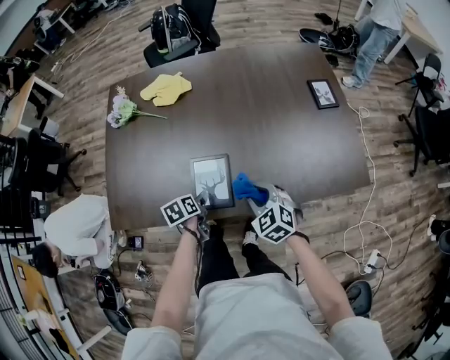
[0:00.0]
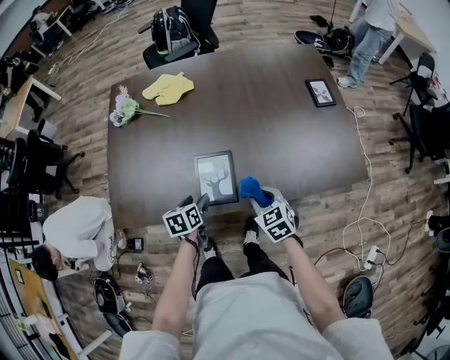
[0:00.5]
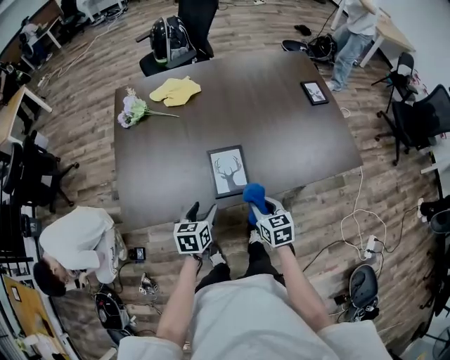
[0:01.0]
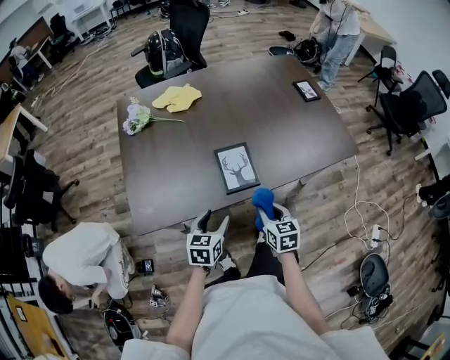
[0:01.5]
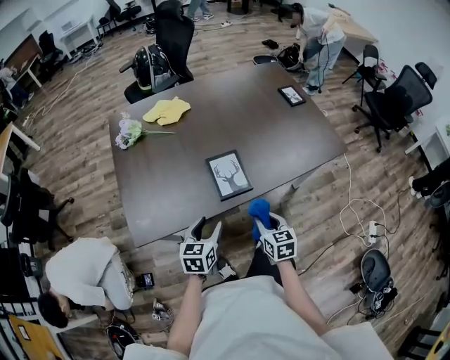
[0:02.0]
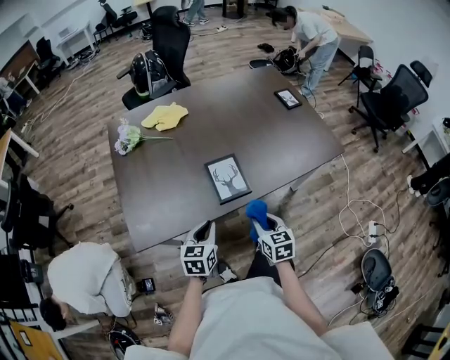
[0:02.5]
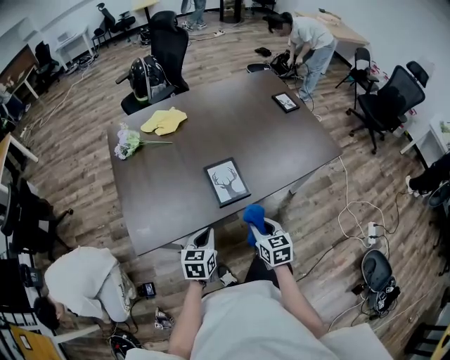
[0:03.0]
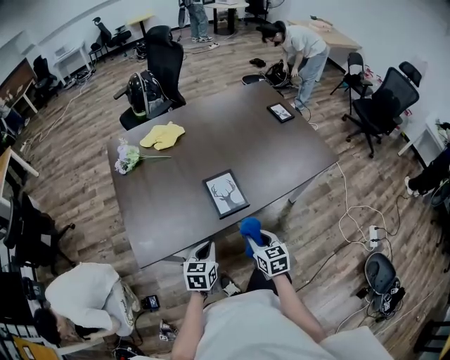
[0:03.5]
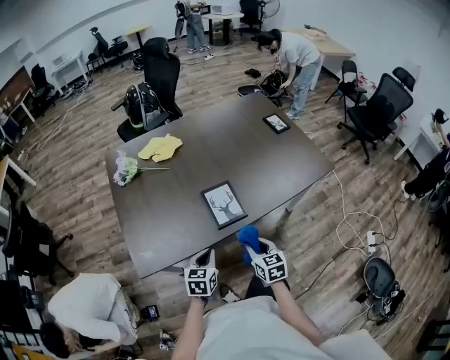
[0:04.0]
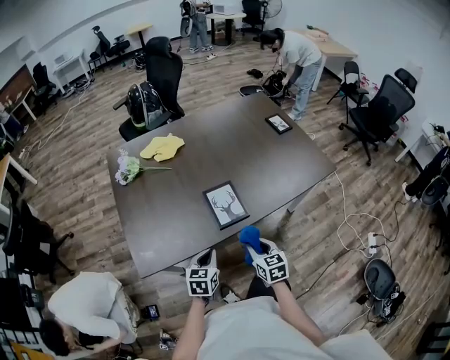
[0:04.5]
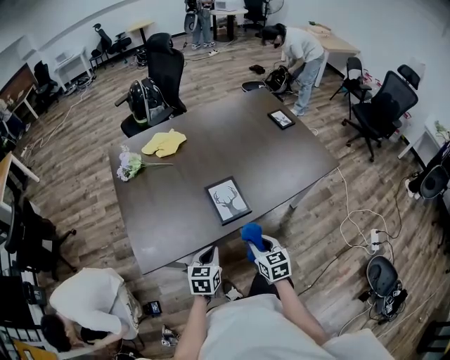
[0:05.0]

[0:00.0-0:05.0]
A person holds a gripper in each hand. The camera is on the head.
0:00.0 to 0:02.5: The left gripper moves backward, upward and to the left, some 20 cm, rotates around the line of its fingers by roughly 40 degrees, clockwise from behind, and closes up. The right gripper moves backward and to the left, some 20 cm, and rolls clockwise, seen from behind, by approximately 40 degrees.
0:02.5 to 0:05.0: The grippers stay close to where they were, moving slightly.

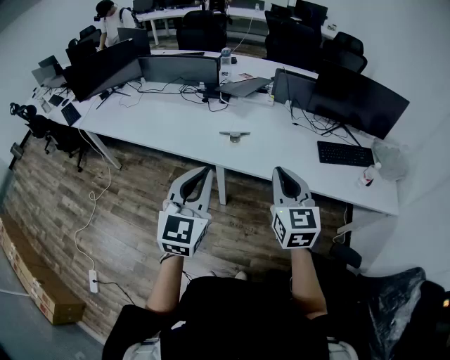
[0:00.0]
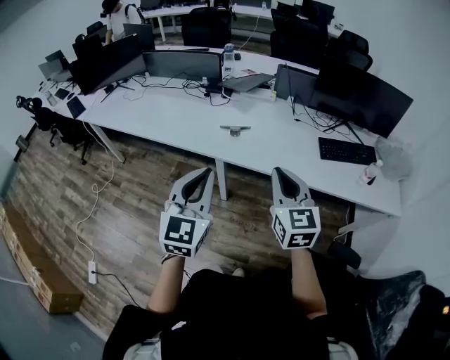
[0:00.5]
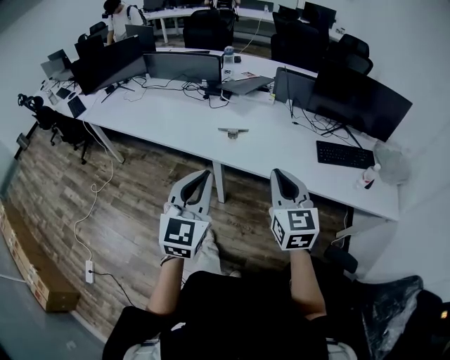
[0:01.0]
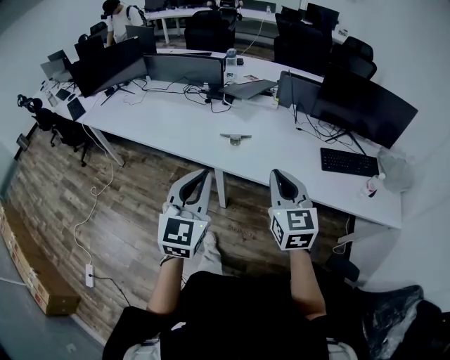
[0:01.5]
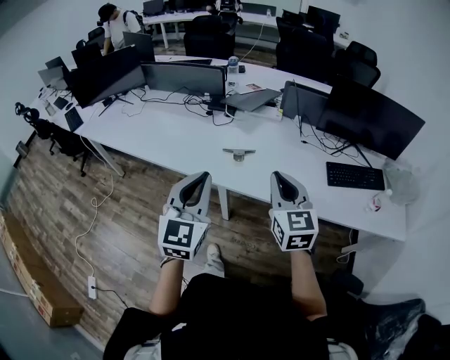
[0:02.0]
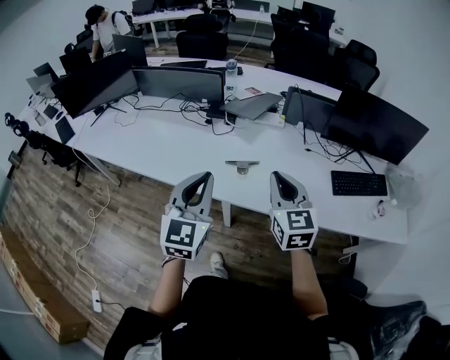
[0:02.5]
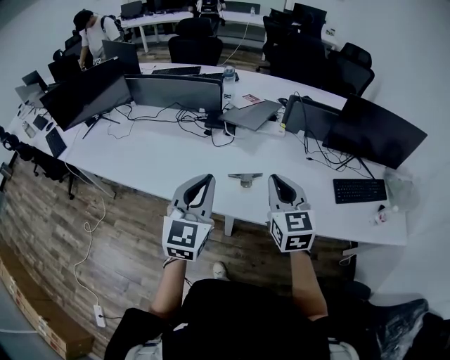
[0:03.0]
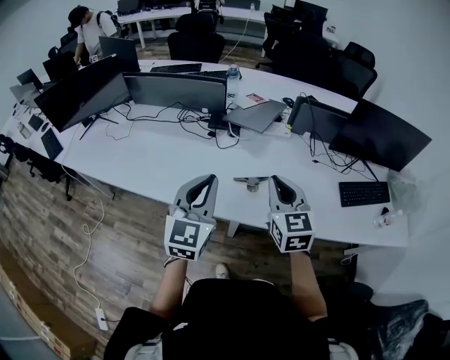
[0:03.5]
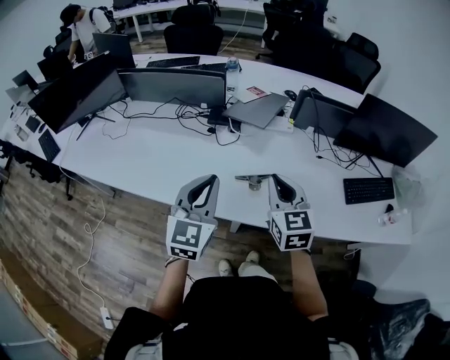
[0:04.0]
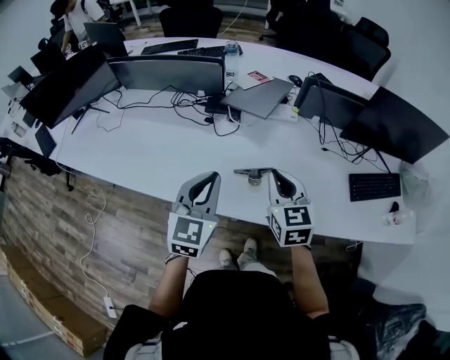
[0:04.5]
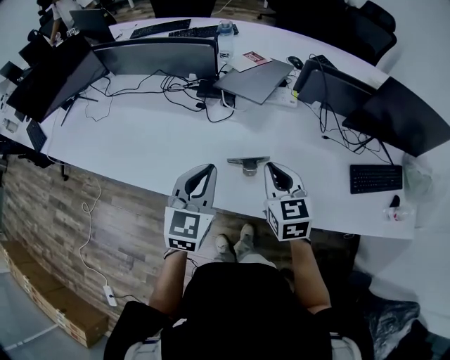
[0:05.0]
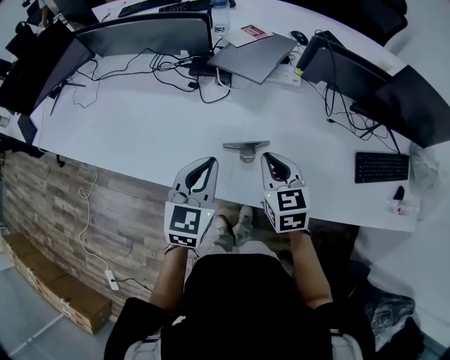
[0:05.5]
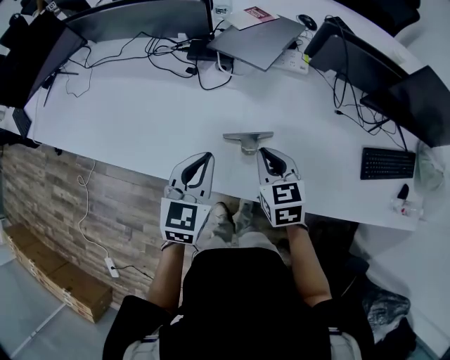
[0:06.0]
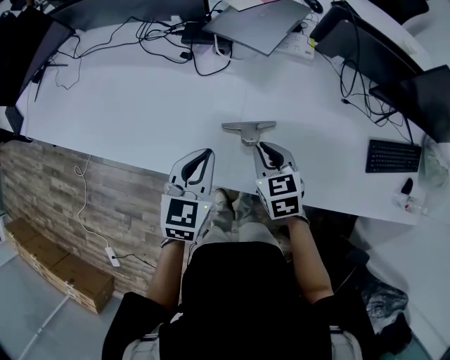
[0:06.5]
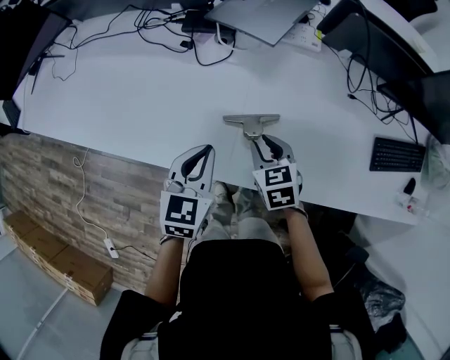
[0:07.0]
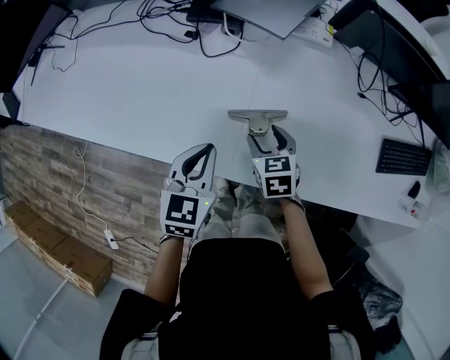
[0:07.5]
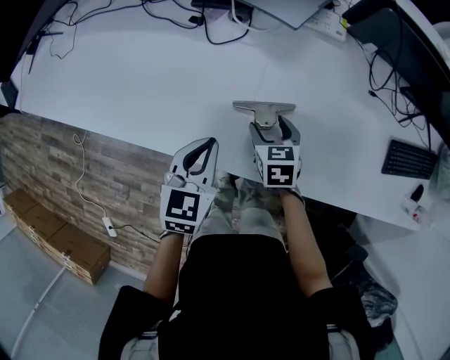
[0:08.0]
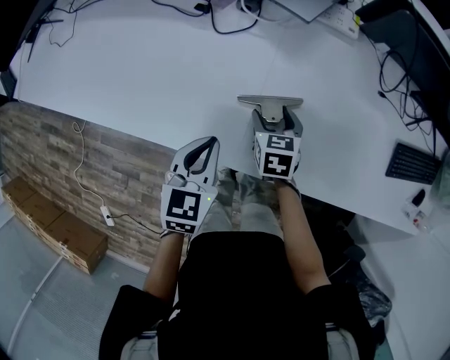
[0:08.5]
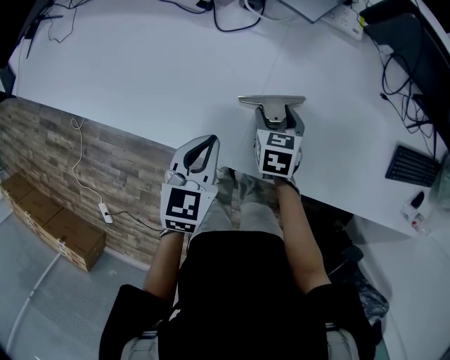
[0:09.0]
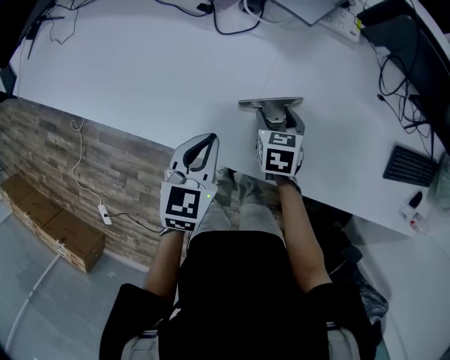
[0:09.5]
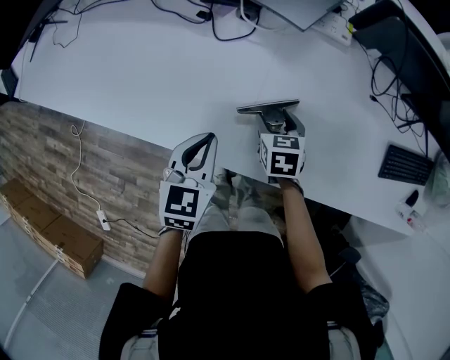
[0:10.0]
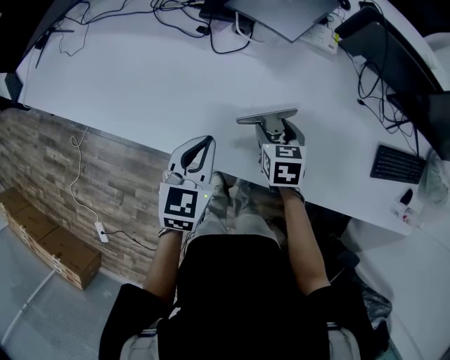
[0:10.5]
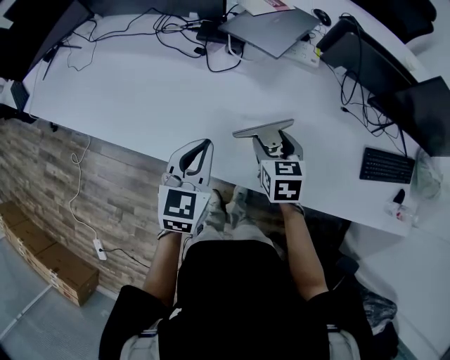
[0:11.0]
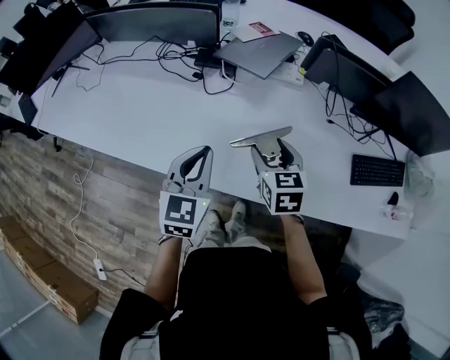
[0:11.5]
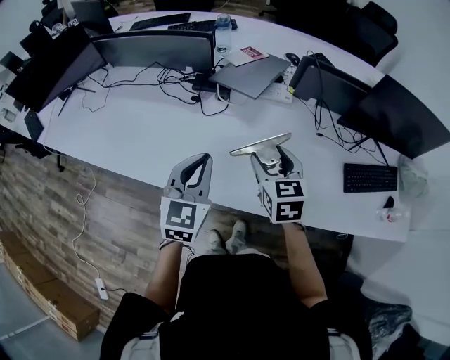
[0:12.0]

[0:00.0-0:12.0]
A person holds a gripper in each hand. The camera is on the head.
0:00.0 to 0:02.0: Both grippers travel together forward, some 10 cm.
0:02.0 to 0:04.0: Both grippers move forward and to the left, roughly 25 cm.
0:04.0 to 0:06.0: Both grippers move downward and forward, approximately 20 cm. The left gripper swivels approximately 20 degrees; the right gripper changes its angle by some 20 degrees.
0:06.0 to 0:08.0: The right gripper heads downward, covering roughly 15 cm, and opens its fingers. Meanwhile the left gripper travels downward by about 10 cm.
0:08.0 to 0:10.0: The grippers move only a little.
0:10.0 to 0:12.0: The grippers both shift upward by about 25 cm. The right gripper turns by some 20 degrees. The left gripper swivels about 20 degrees.

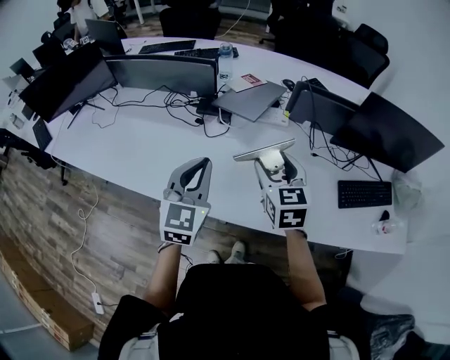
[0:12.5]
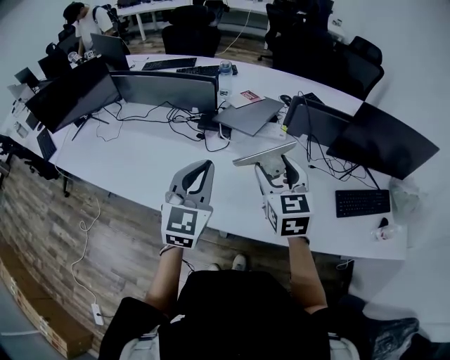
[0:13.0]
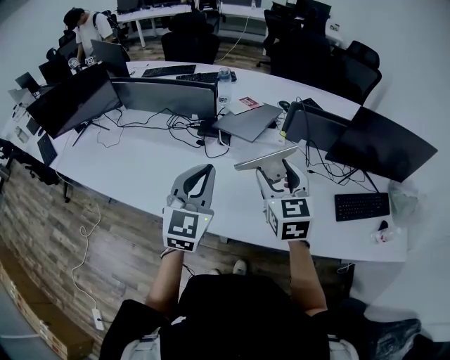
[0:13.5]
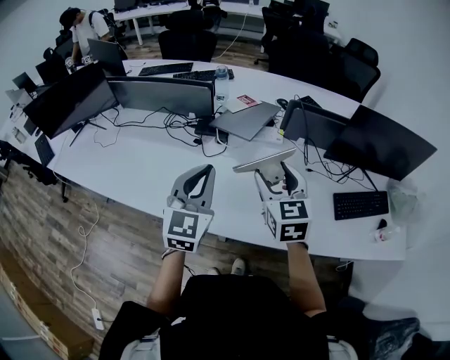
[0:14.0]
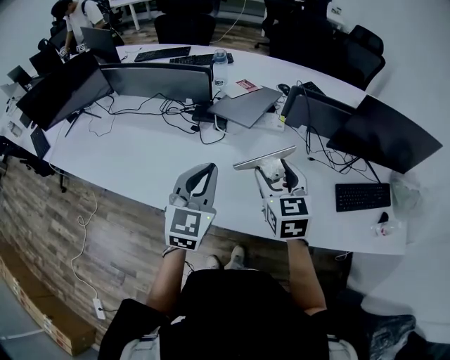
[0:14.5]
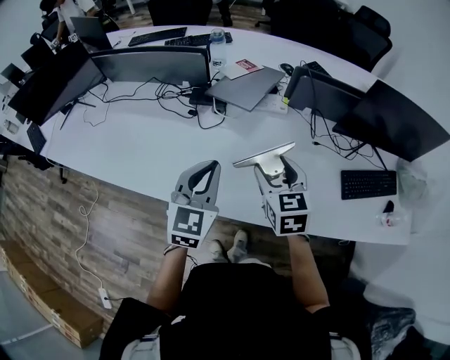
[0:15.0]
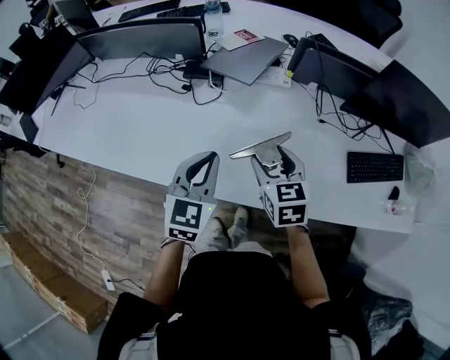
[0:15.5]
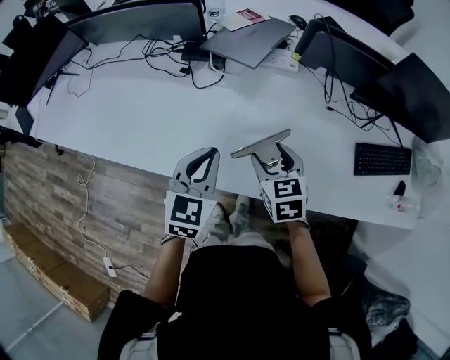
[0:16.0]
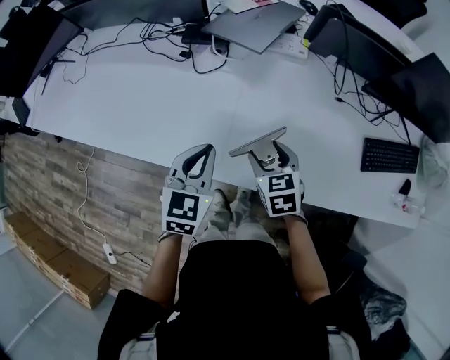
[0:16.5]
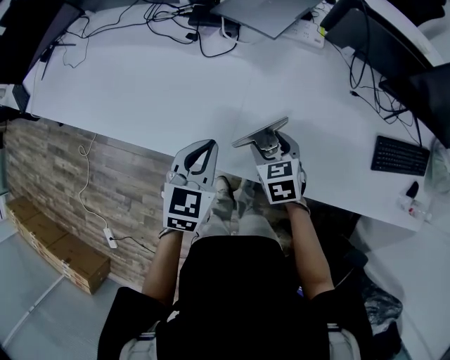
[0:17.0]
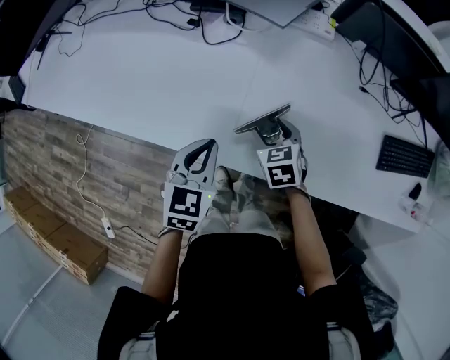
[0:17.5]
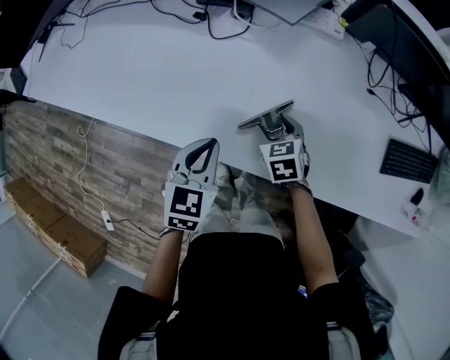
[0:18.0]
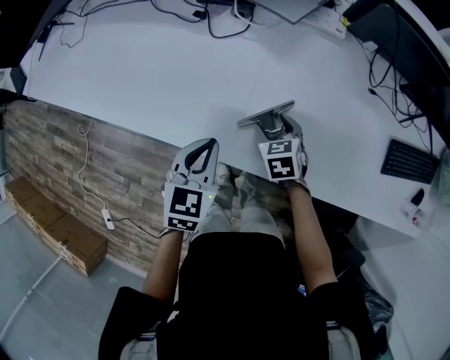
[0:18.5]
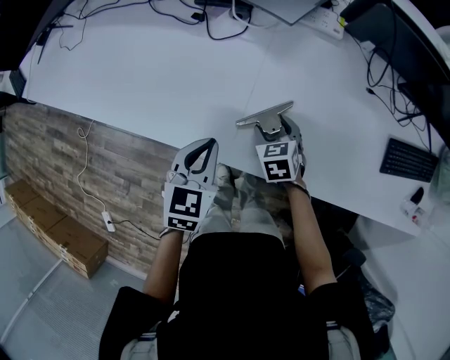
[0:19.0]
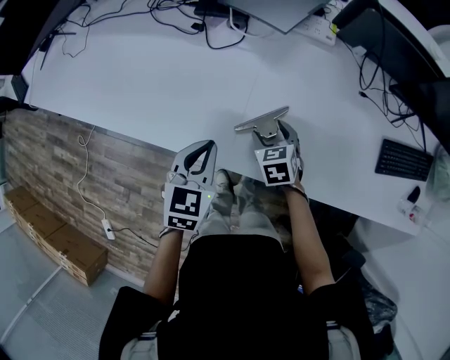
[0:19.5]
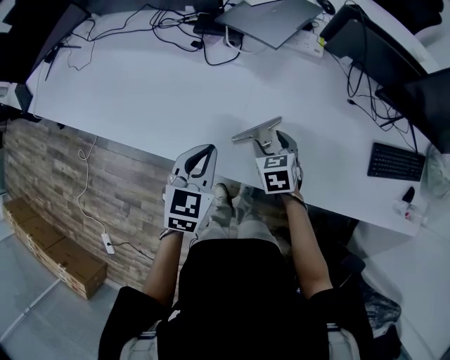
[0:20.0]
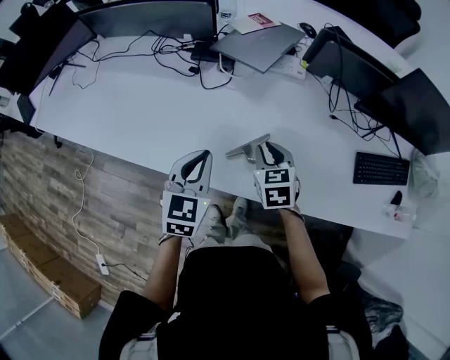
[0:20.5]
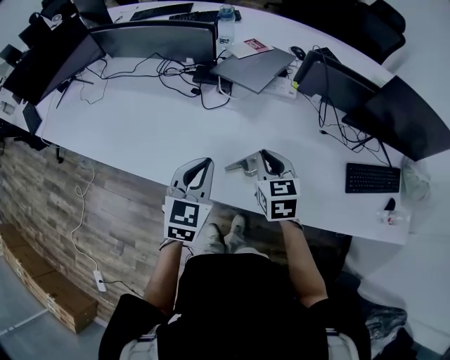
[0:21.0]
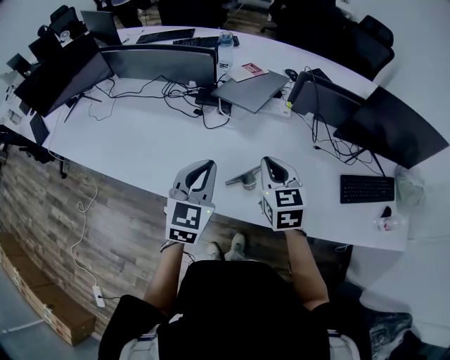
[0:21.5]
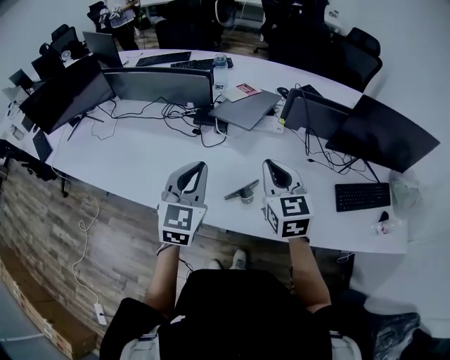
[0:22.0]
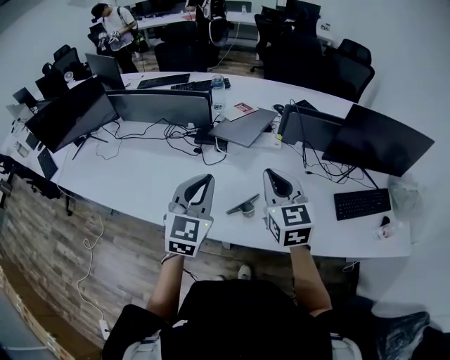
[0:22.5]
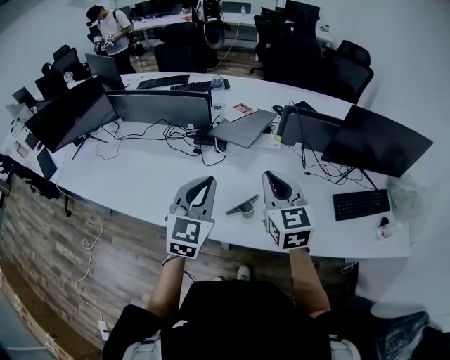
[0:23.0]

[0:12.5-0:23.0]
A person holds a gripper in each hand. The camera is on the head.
0:14.5 to 0:16.5: The grippers both shift downward by some 20 cm. The right gripper changes its angle by approximately 30 degrees. The left gripper changes its angle by approximately 20 degrees.
0:16.5 to 0:19.0: The right gripper travels downward by roughly 15 cm. The left gripper shifts some 10 cm downward.
0:19.0 to 0:21.0: The left gripper travels upward by about 15 cm; the right gripper travels upward by approximately 25 cm, rotates some 20 degrees, and closes.
0:21.0 to 0:23.0: Both grippers move upward, approximately 15 cm. The right gripper rotates about 20 degrees.
